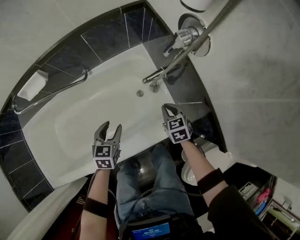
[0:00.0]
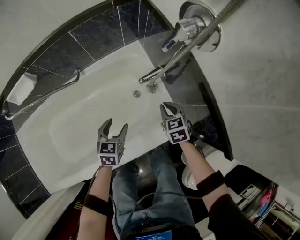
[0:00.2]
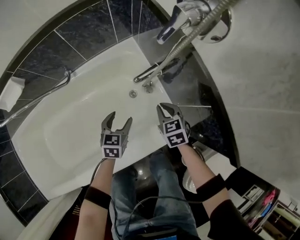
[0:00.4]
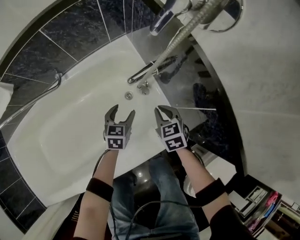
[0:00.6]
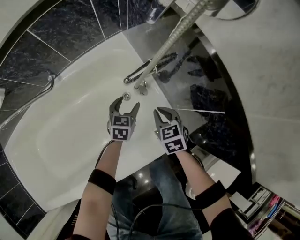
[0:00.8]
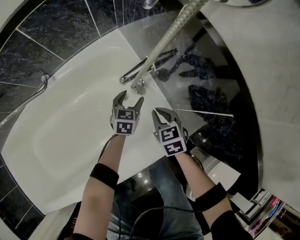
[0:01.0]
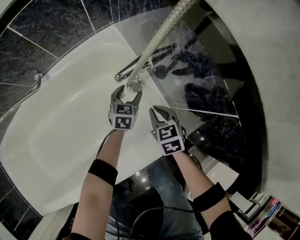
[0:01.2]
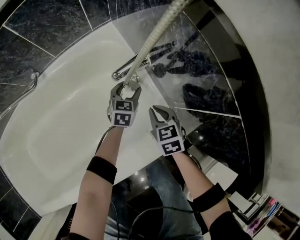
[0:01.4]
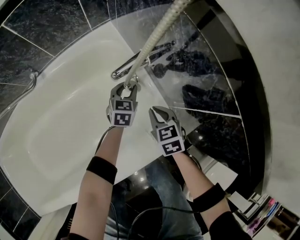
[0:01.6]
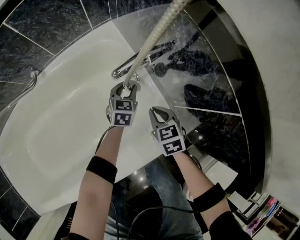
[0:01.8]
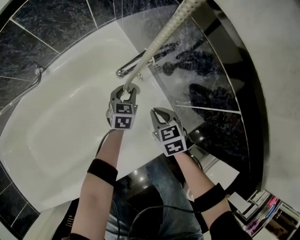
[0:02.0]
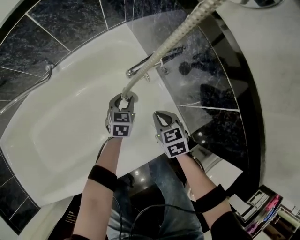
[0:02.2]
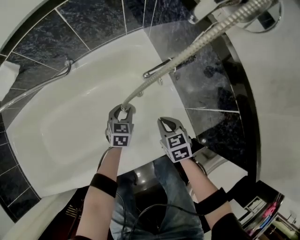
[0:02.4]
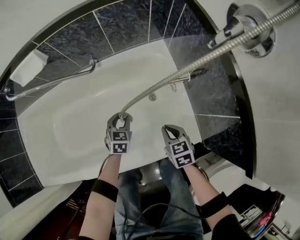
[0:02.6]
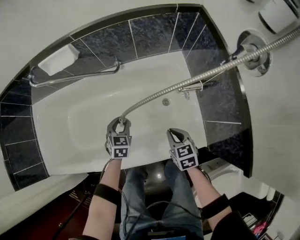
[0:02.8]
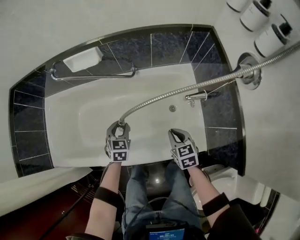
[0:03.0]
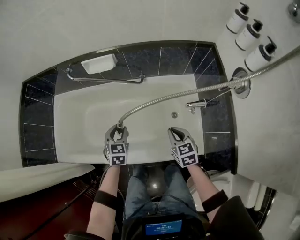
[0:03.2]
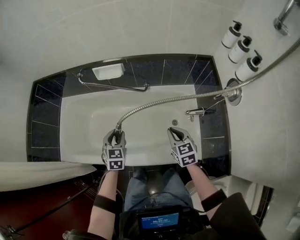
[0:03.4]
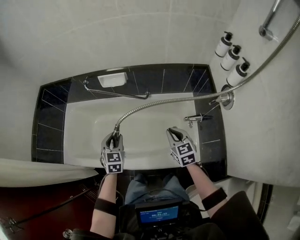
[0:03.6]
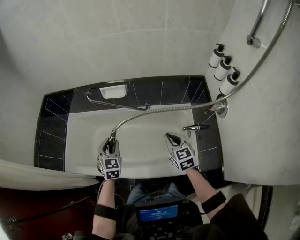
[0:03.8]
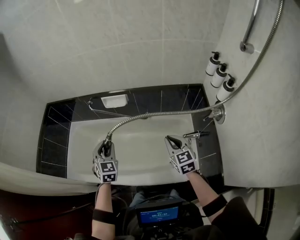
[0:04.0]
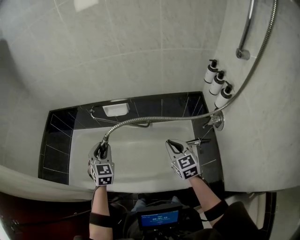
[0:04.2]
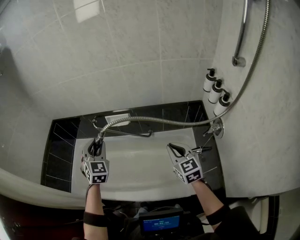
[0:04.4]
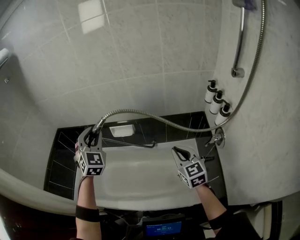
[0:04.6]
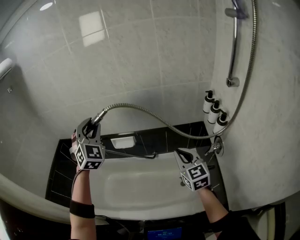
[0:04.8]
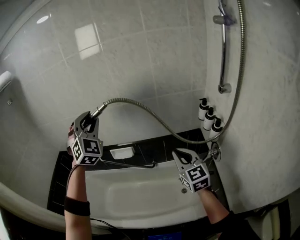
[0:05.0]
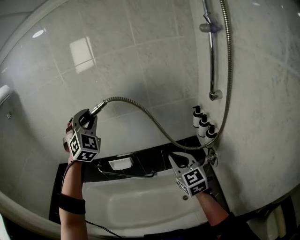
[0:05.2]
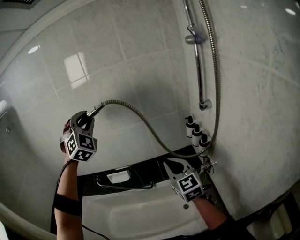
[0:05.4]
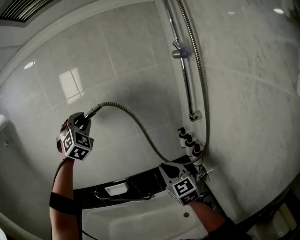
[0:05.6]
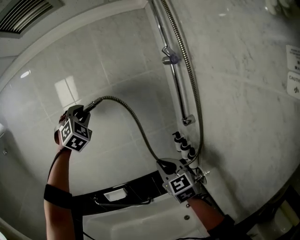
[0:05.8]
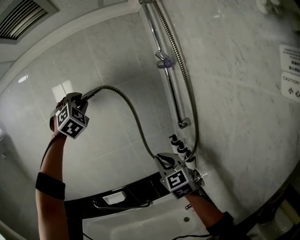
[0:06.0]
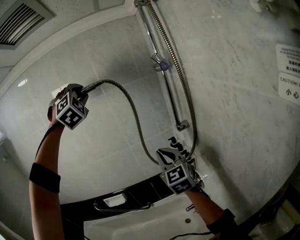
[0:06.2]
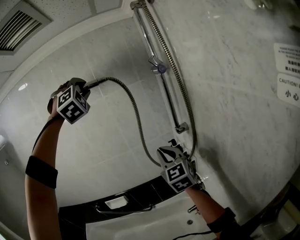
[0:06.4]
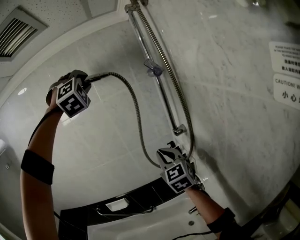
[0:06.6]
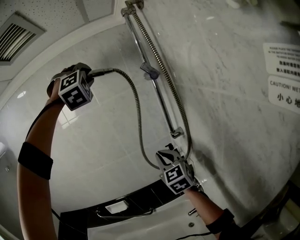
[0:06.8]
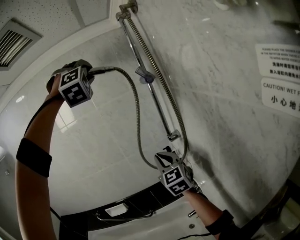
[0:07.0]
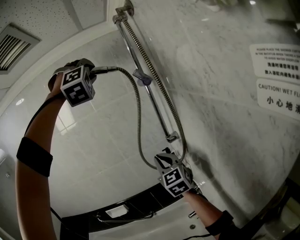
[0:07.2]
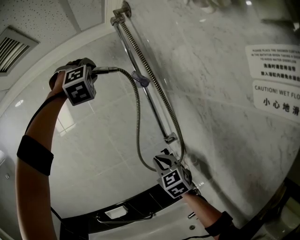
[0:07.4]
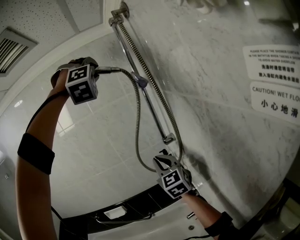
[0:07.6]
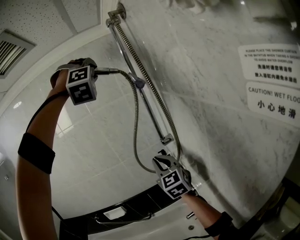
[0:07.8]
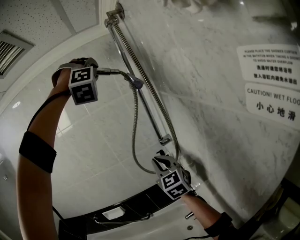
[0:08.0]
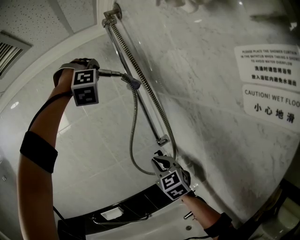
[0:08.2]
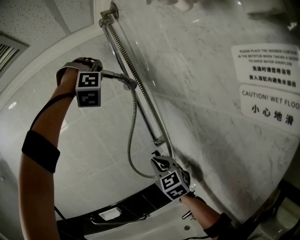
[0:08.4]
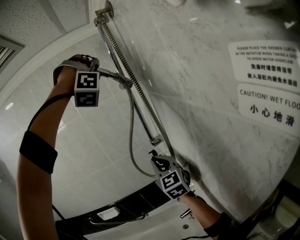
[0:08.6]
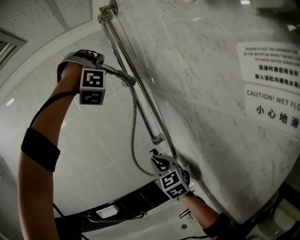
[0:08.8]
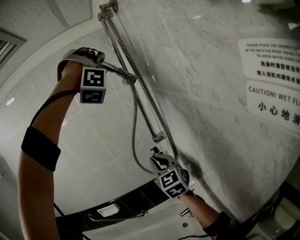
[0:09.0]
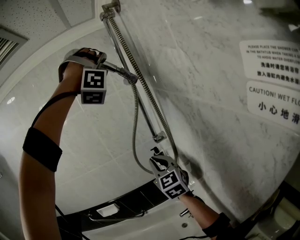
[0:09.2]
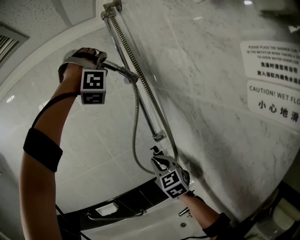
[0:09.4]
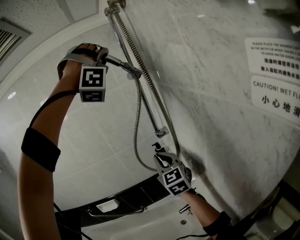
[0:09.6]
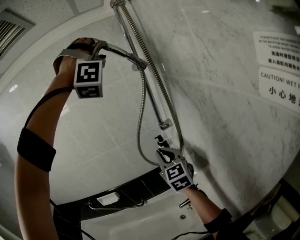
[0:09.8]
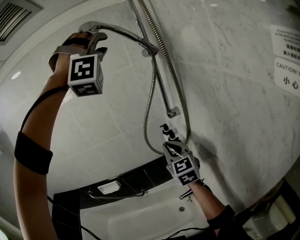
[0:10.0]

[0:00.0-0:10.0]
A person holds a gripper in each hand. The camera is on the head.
0.0 to 1.4 s: The right gripper is displaced downward by about 25 cm, while the left gripper shifts some 40 cm downward, to the right and forward.
1.4 to 2.8 s: The right gripper changes place by approximately 25 cm, and changes its angle by approximately 20 degrees; the left gripper moves roughly 40 cm, rotates approximately 30 degrees, and closes up.
2.8 to 4.2 s: Both grippers travel together upward, approximately 50 cm. The left gripper swivels about 30 degrees; the right gripper rotates approximately 30 degrees.
4.2 to 5.8 s: The left gripper goes roughly 60 cm upward and to the right, and twists some 50 degrees clockwise, seen from behind. Meanwhile the right gripper goes approximately 30 cm upward, and turns by about 30 degrees.
5.8 to 7.2 s: The right gripper shifts about 10 cm to the right and upward. Meanwhile the left gripper moves to the right and upward, approximately 30 cm, and rotates some 30 degrees.
7.2 to 8.6 s: The left gripper shifts about 10 cm to the right, and turns by roughly 30 degrees, while the right gripper travels to the right by some 5 cm.
8.6 to 10.0 s: The right gripper changes place by some 5 cm, while the left gripper is displaced backward and to the left by some 10 cm.

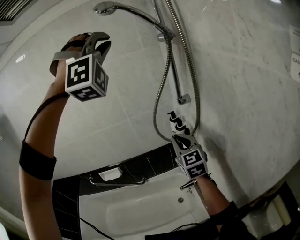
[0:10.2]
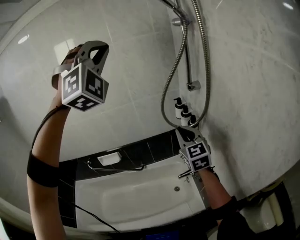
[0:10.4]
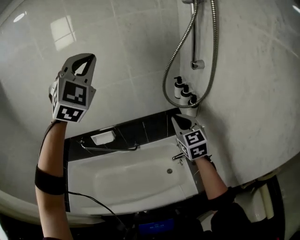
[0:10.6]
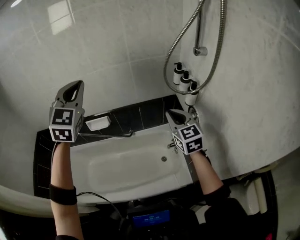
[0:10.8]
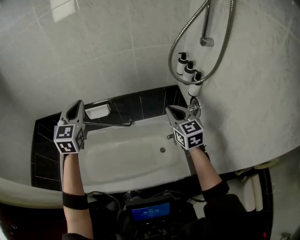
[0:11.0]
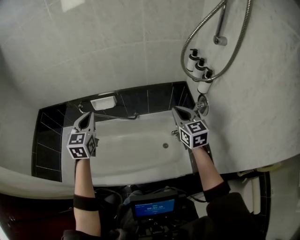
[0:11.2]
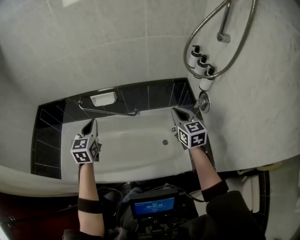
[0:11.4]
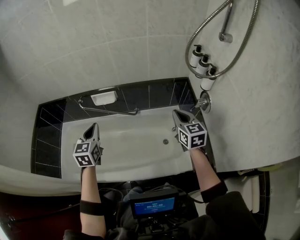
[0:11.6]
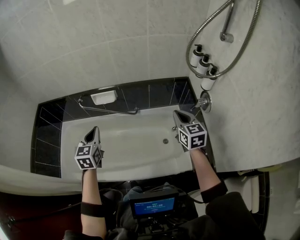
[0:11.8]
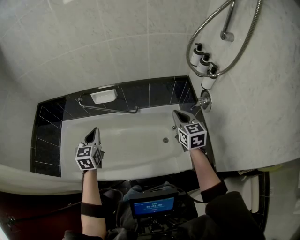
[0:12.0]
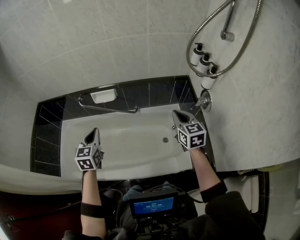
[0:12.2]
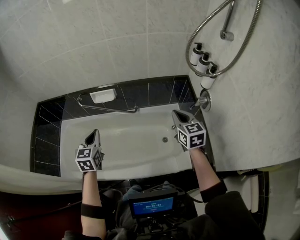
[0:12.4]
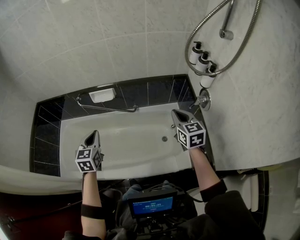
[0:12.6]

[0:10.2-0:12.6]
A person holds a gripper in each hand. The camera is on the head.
10.2 to 11.4 s: The left gripper travels downward and to the left by some 70 cm, and twists approximately 100 degrees counterclockwise, seen from behind, while the right gripper moves downward and to the left, some 25 cm, and rotates roughly 20 degrees.
11.4 to 12.6 s: The left gripper heads downward, covering some 5 cm.

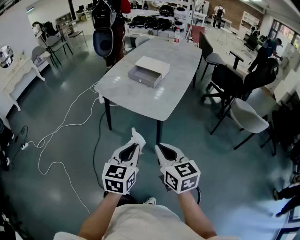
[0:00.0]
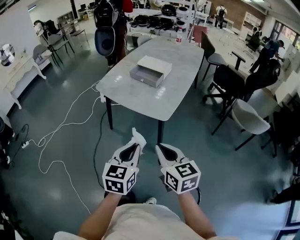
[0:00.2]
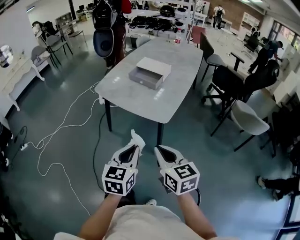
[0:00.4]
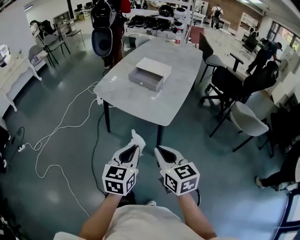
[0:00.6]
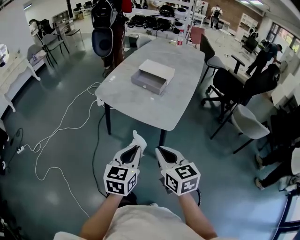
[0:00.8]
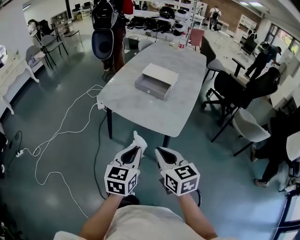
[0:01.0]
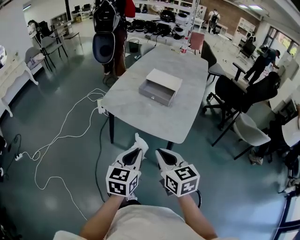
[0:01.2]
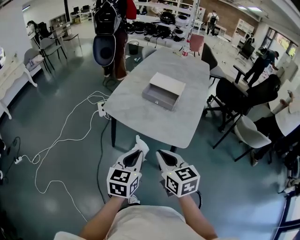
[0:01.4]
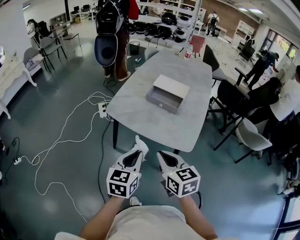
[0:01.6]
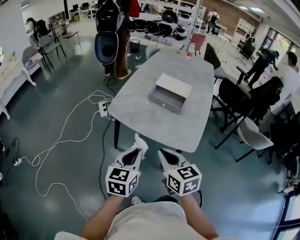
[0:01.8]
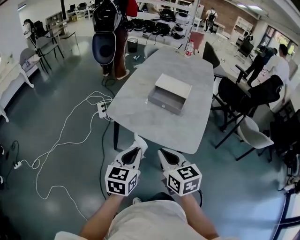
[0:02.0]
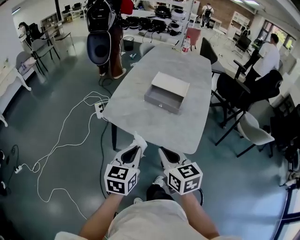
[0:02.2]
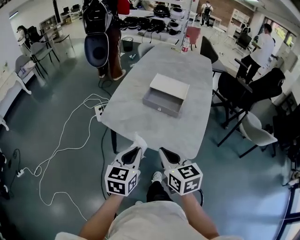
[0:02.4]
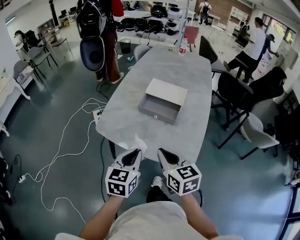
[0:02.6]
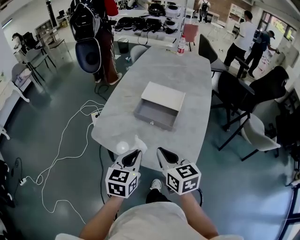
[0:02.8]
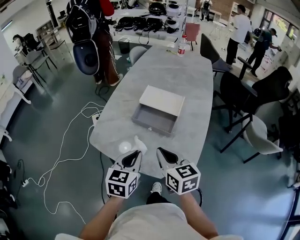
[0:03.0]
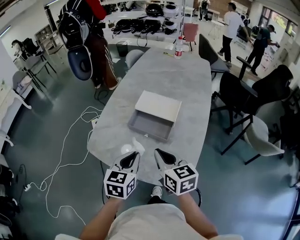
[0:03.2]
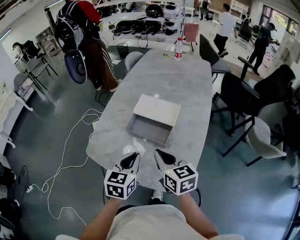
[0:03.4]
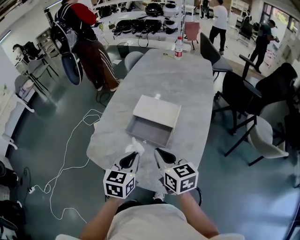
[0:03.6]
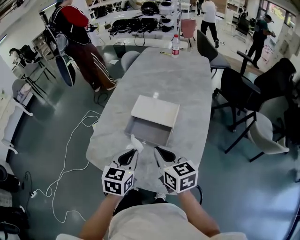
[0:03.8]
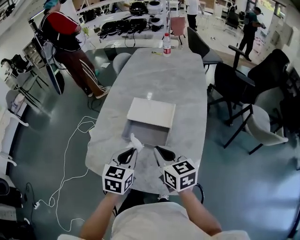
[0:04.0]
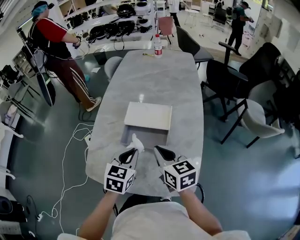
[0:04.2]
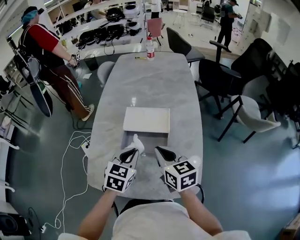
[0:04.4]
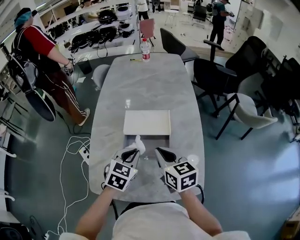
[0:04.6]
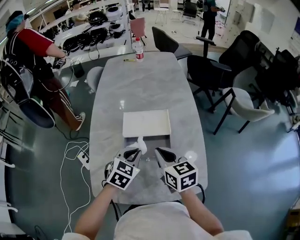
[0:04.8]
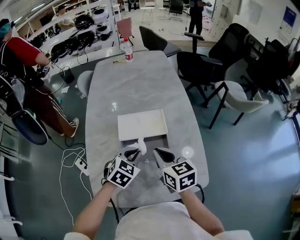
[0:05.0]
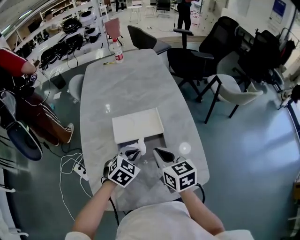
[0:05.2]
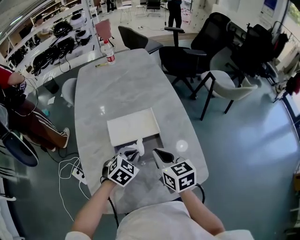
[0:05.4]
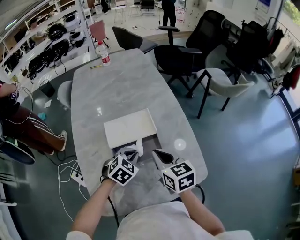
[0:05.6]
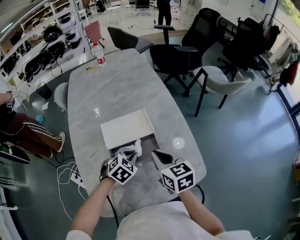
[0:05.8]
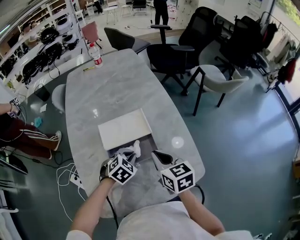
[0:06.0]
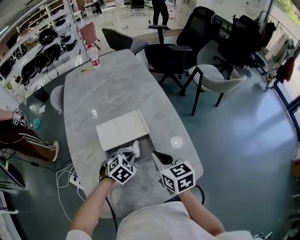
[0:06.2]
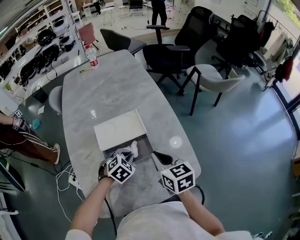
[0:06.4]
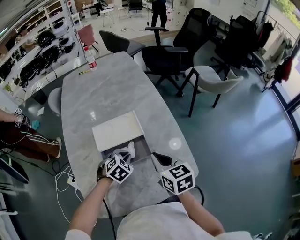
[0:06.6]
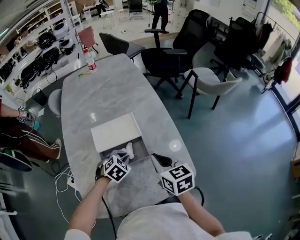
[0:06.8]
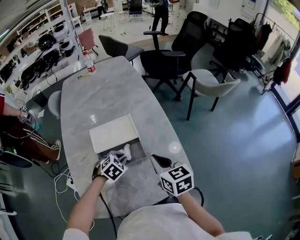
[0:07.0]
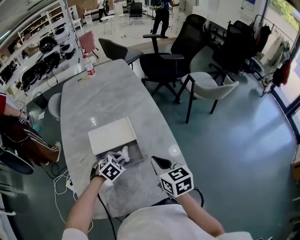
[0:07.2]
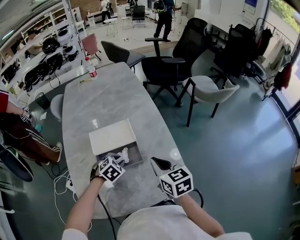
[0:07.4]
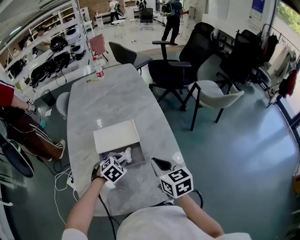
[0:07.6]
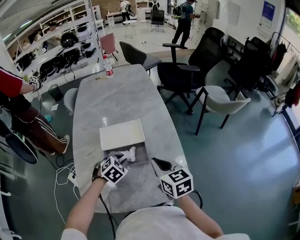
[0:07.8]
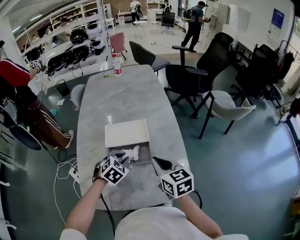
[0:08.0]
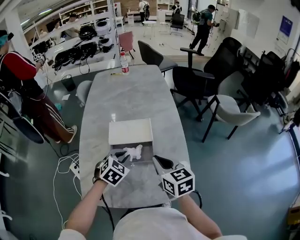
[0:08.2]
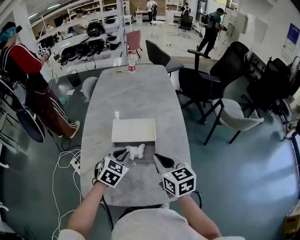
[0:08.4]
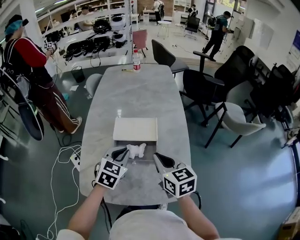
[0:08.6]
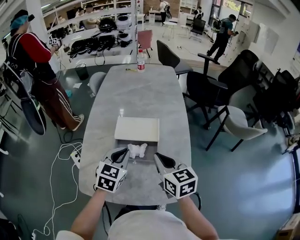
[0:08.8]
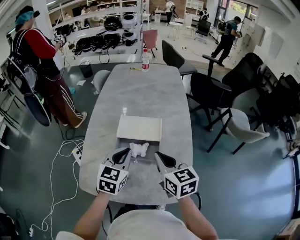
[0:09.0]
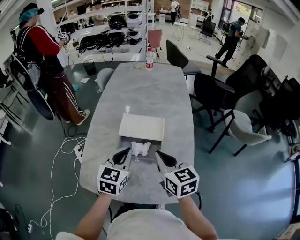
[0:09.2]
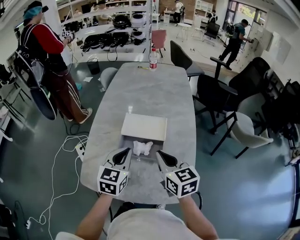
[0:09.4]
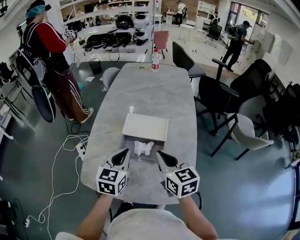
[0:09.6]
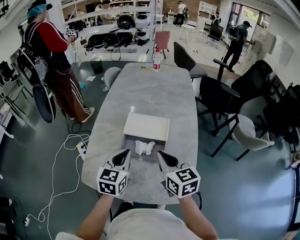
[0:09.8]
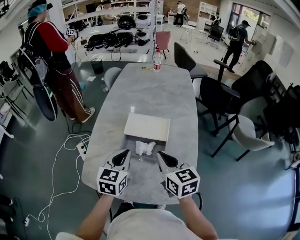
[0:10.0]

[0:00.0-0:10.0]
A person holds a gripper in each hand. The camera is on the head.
0.0 to 1.4 s: The two grippers go roughly 20 cm forward and to the left.
1.4 to 2.8 s: Both grippers move forward, approximately 20 cm.
2.8 to 4.2 s: The two grippers go about 15 cm forward. The left gripper rotates approximately 20 degrees.
4.2 to 5.8 s: The left gripper heads downward, covering approximately 10 cm, and changes its angle by about 60 degrees, while the right gripper shifts by approximately 5 cm, and turns by roughly 30 degrees.
5.8 to 7.2 s: The right gripper goes roughly 10 cm to the right.
7.2 to 8.6 s: The right gripper goes some 5 cm upward. Meanwhile the left gripper is displaced upward by roughly 15 cm, and turns by roughly 40 degrees.
8.6 to 10.0 s: The left gripper ends up about 5 cm from where it was, and turns by approximately 30 degrees.

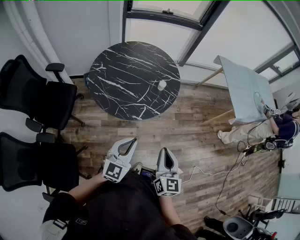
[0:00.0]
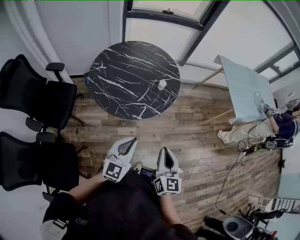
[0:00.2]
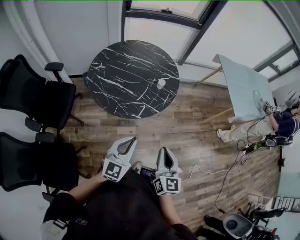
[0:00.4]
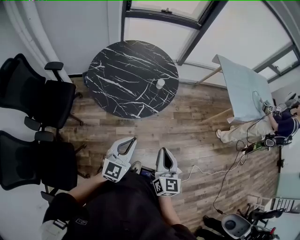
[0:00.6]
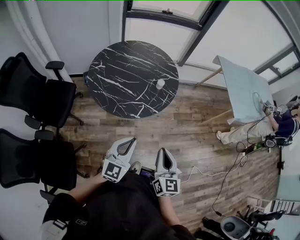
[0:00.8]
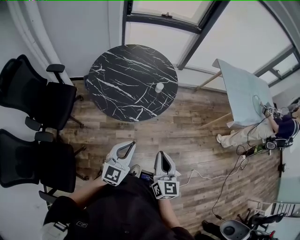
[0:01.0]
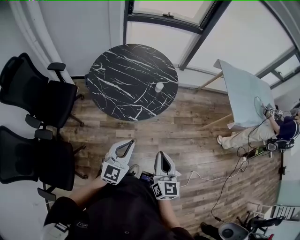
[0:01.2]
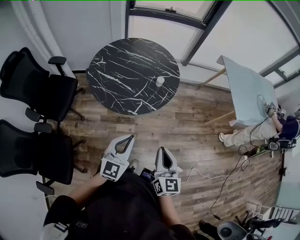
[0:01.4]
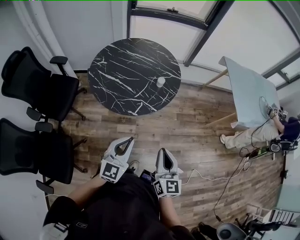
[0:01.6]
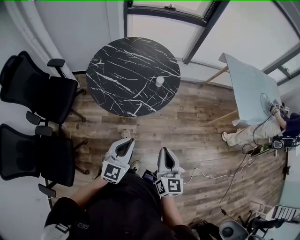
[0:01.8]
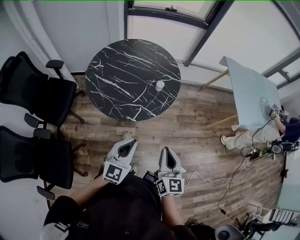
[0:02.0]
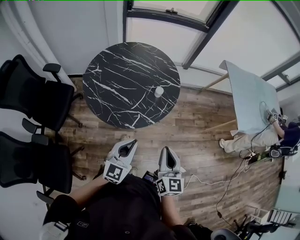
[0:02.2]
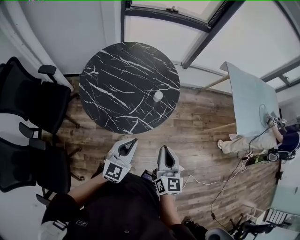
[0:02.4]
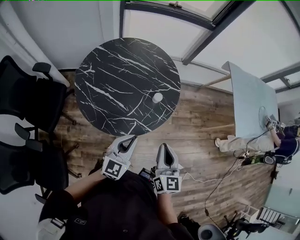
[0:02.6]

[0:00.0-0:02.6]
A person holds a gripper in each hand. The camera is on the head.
0.0 to 1.2 s: The grippers stay close to where they were, moving slightly.
1.2 to 2.6 s: The two grippers go roughly 20 cm forward.
